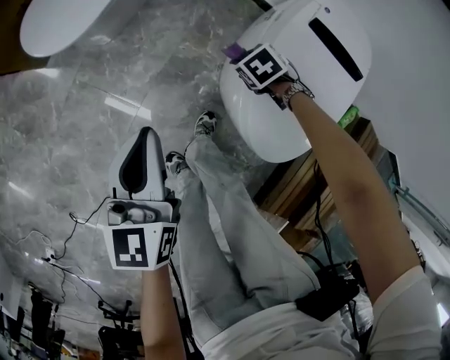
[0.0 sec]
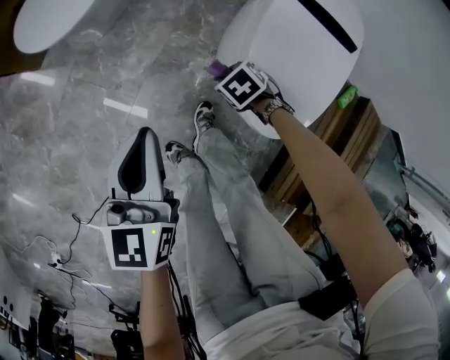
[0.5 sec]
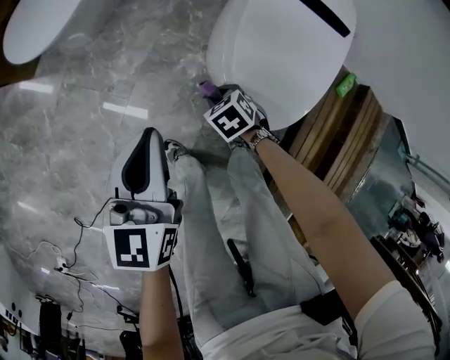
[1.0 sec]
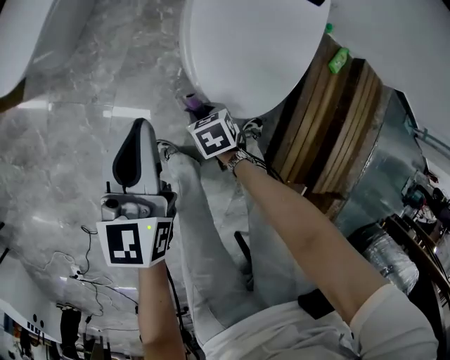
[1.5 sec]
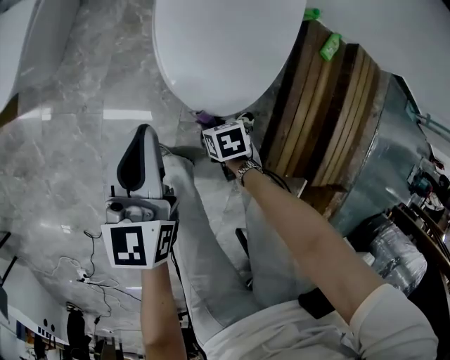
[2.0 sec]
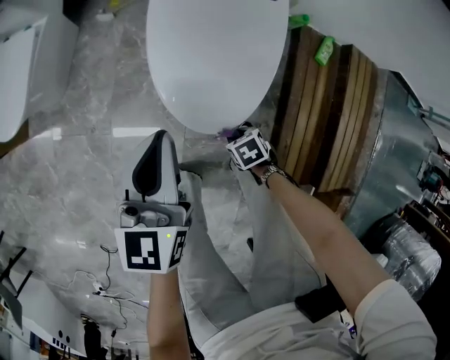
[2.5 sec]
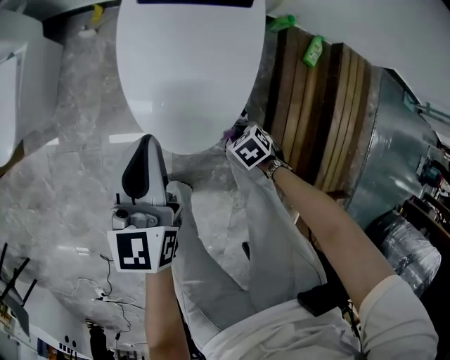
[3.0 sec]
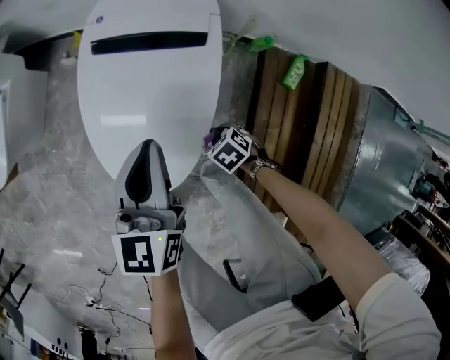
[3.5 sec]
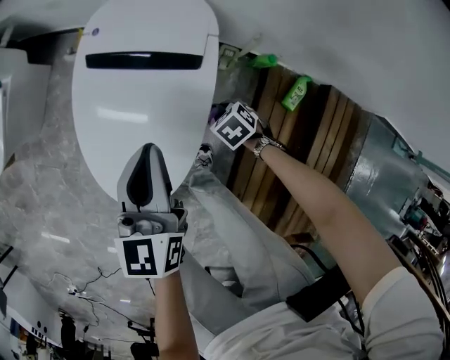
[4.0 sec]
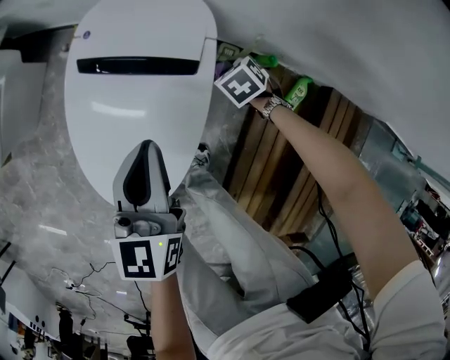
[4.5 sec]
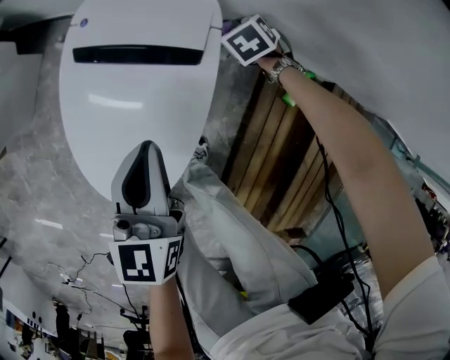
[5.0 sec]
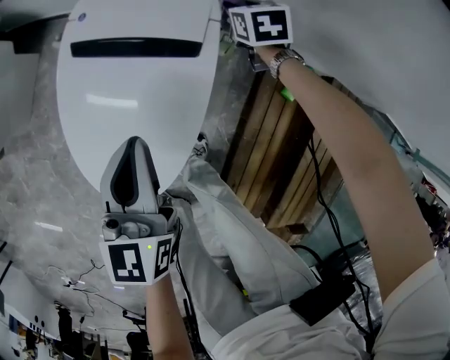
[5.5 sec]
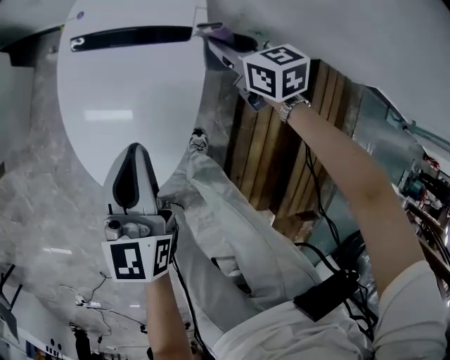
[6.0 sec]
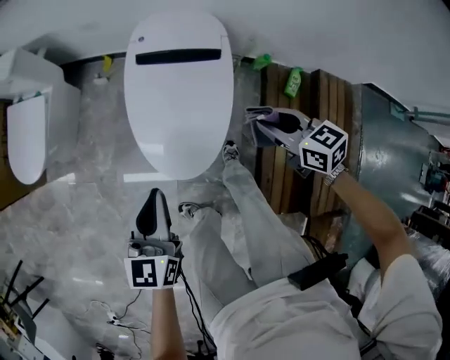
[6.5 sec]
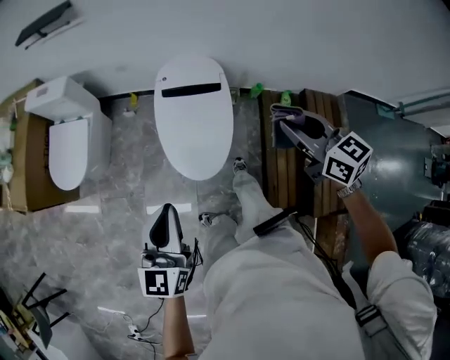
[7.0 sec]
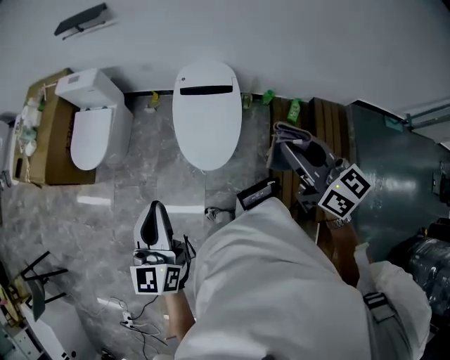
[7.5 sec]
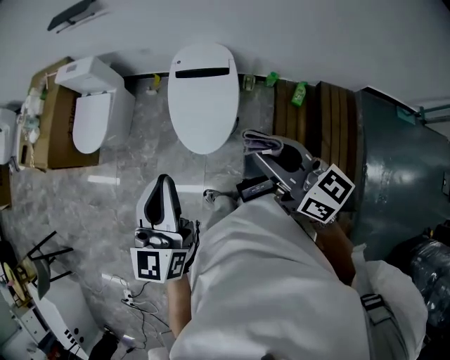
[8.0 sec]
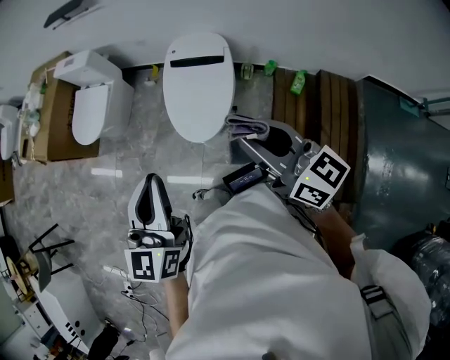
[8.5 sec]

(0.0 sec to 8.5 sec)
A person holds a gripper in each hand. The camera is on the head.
0.0 sec - 2.0 sec: The left gripper moves about 25 cm, while the right gripper shifts by about 35 cm, and rolls clockwise, seen from behind, by approximately 50 degrees.
2.0 sec - 4.0 sec: The right gripper moves approximately 40 cm, and changes its angle by some 40 degrees; the left gripper ends up some 35 cm from where it was.
4.0 sec - 6.5 sec: The left gripper ends up approximately 30 cm from where it was, while the right gripper goes some 30 cm upward, and angles its fingers upward, by approximately 40 degrees.
6.5 sec - 8.5 sec: The two grippers go roughly 40 cm upward and backward. The right gripper tips its fingers upward by roughly 40 degrees.

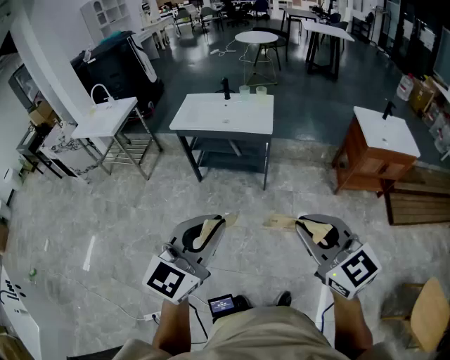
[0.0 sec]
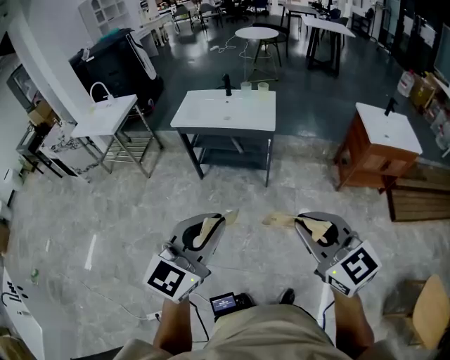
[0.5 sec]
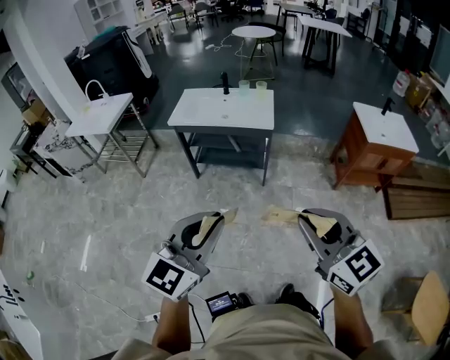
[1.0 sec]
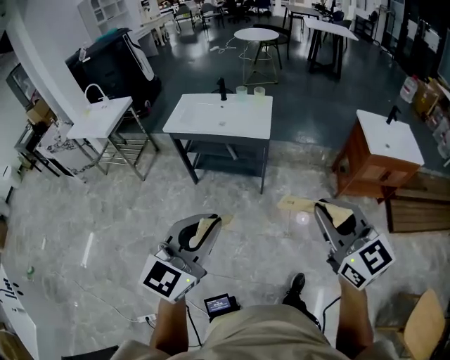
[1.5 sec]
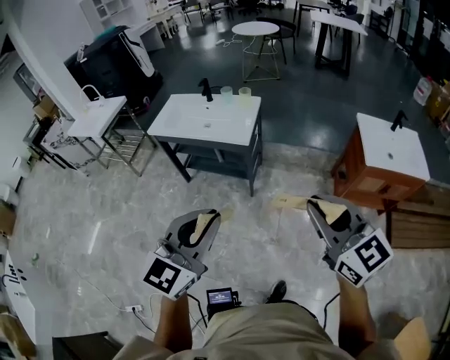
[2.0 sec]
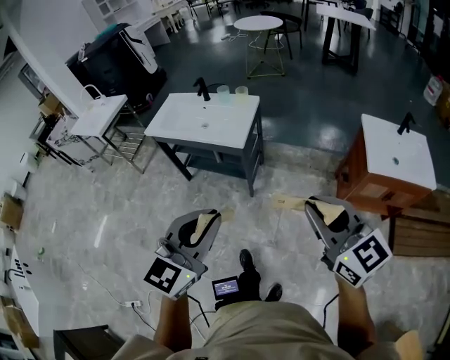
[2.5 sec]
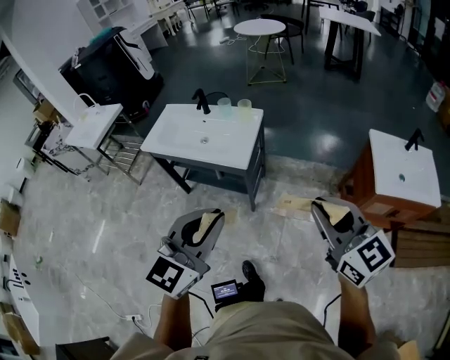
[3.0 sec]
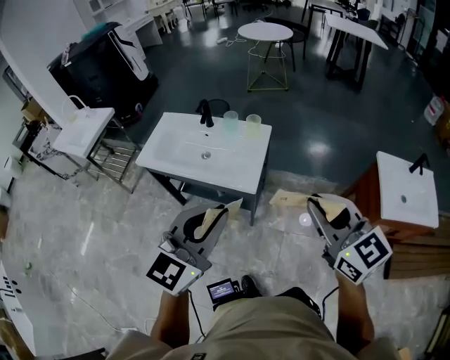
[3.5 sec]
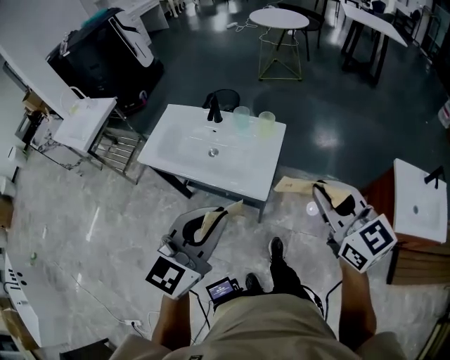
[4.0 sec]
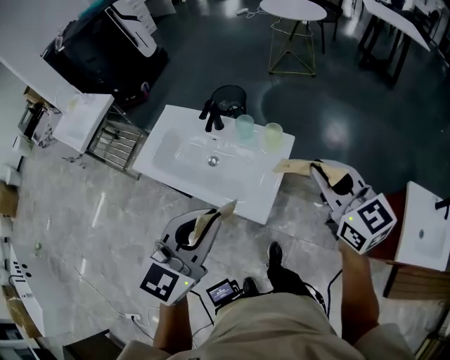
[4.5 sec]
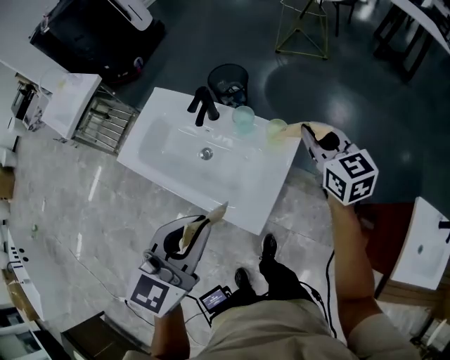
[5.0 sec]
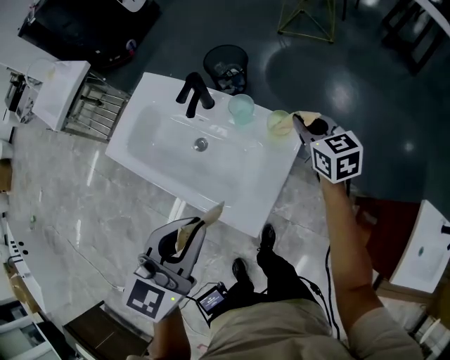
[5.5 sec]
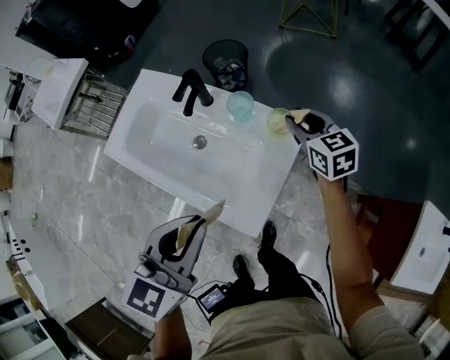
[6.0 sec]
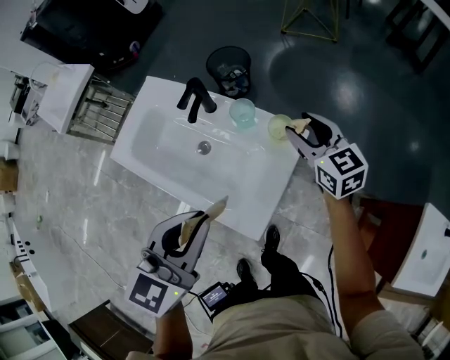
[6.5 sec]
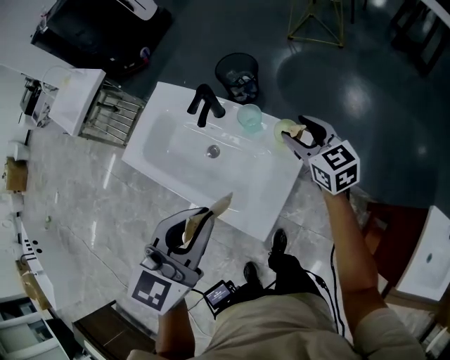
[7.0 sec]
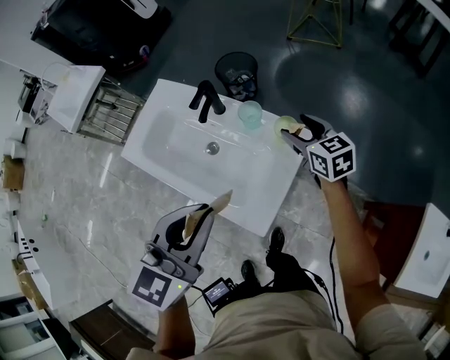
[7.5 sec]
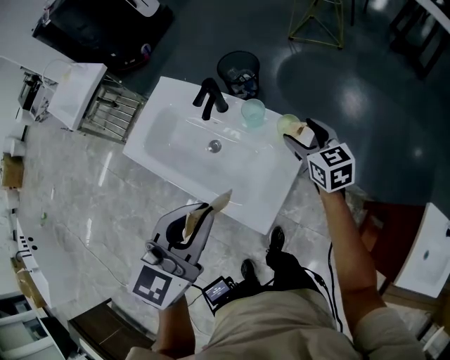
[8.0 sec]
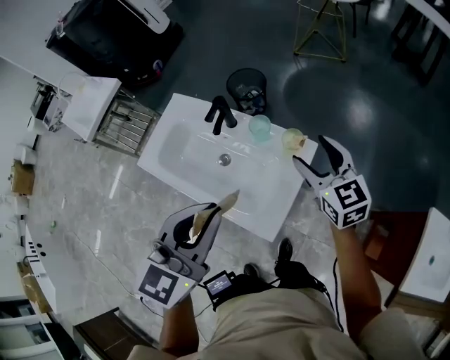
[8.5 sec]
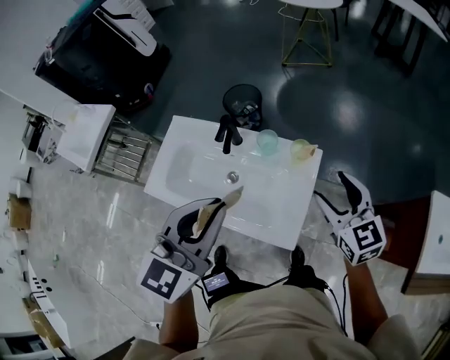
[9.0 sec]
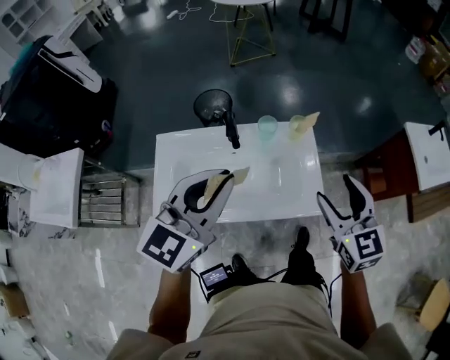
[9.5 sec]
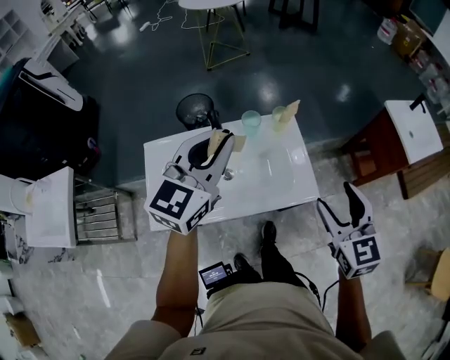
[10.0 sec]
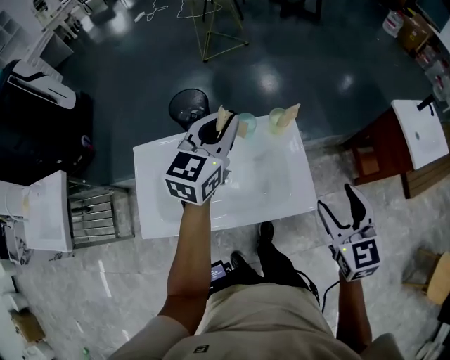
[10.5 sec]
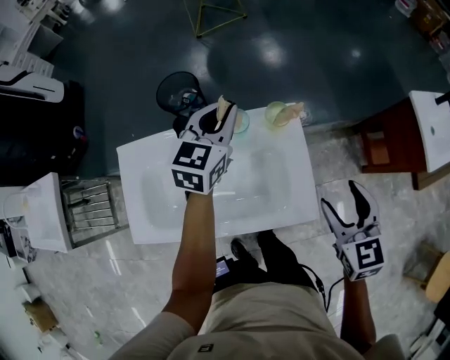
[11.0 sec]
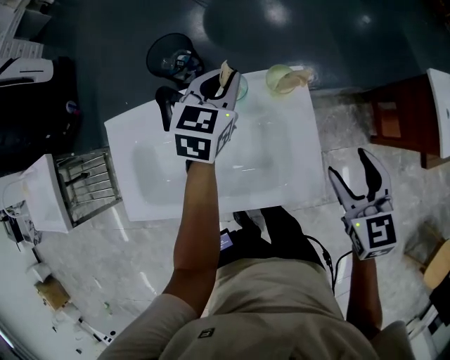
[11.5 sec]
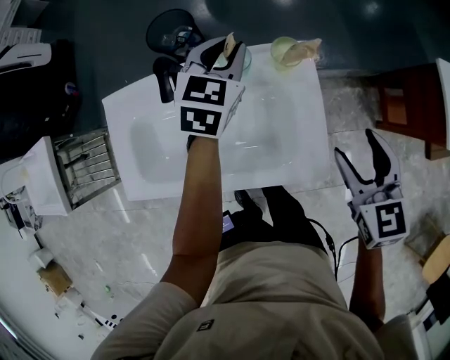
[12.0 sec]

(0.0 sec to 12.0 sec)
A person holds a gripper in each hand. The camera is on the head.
0.0 sec - 2.0 sec: The two grippers go about 35 cm to the right and forward.
2.0 sec - 4.0 sec: Both grippers are carried forward, approximately 40 cm.
4.0 sec - 6.0 sec: The left gripper shifts about 30 cm forward and downward, and swivels approximately 20 degrees. The right gripper heads forward and downward, covering some 60 cm, and turns by approximately 20 degrees.
6.0 sec - 8.0 sec: The right gripper opens its fingers.
8.0 sec - 10.0 sec: The right gripper shifts by some 40 cm, and swivels some 50 degrees. The left gripper moves some 20 cm, and swivels roughly 40 degrees.
10.0 sec - 12.0 sec: The left gripper moves downward and forward, about 35 cm, and turns by approximately 30 degrees. The right gripper travels forward and downward by roughly 25 cm.

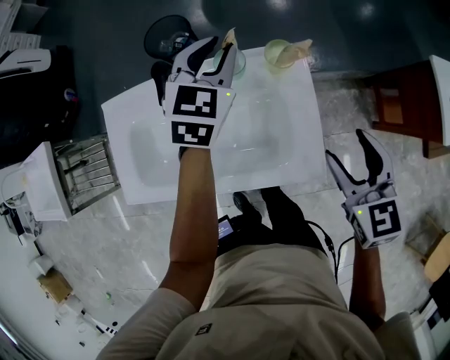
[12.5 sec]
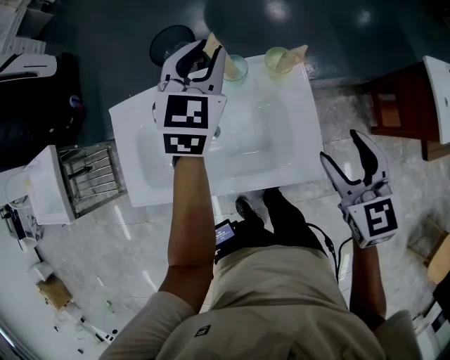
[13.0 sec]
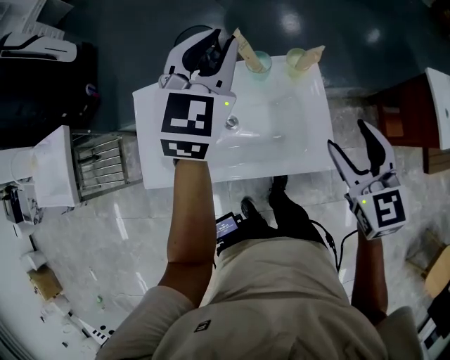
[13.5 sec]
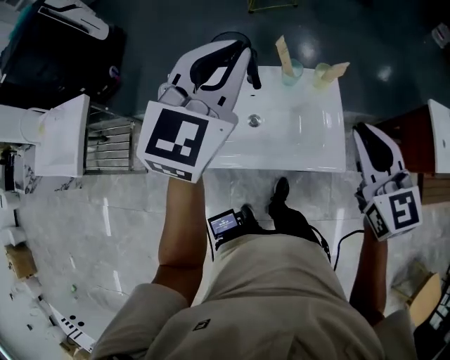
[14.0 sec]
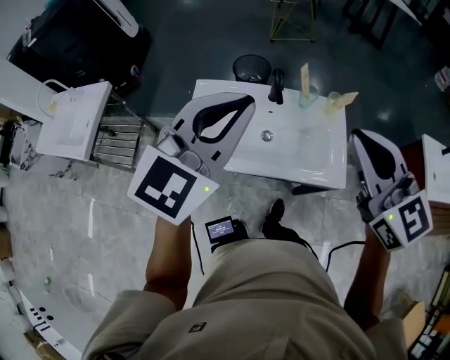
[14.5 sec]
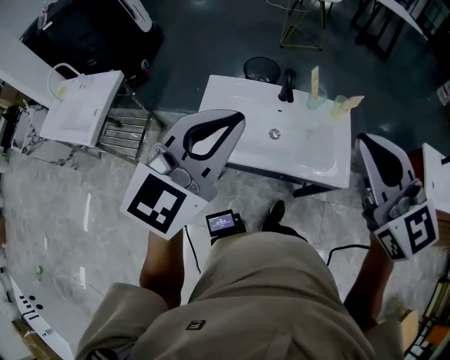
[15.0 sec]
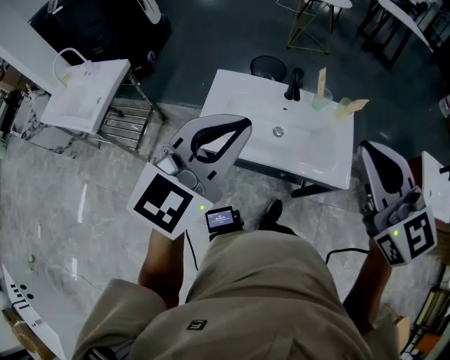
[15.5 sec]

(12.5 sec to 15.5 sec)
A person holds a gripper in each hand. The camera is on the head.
12.5 sec - 14.0 sec: The left gripper is displaced upward, backward and to the left by roughly 35 cm, and swivels roughly 20 degrees, while the right gripper goes roughly 25 cm upward, to the left and backward, changes its angle by some 20 degrees, and closes.
14.0 sec - 15.5 sec: The right gripper heads to the left, upward and backward, covering approximately 25 cm, and swivels some 20 degrees. Meanwhile the left gripper shifts approximately 30 cm backward and to the left.

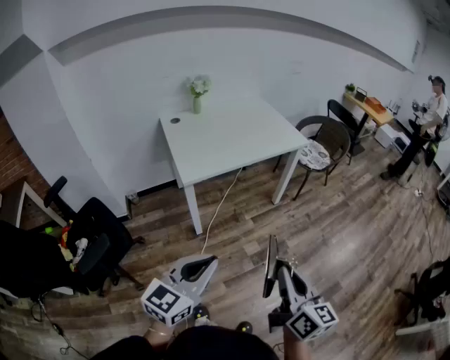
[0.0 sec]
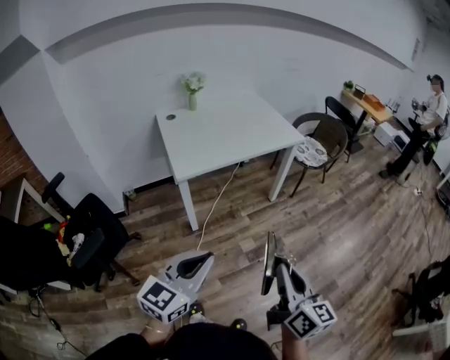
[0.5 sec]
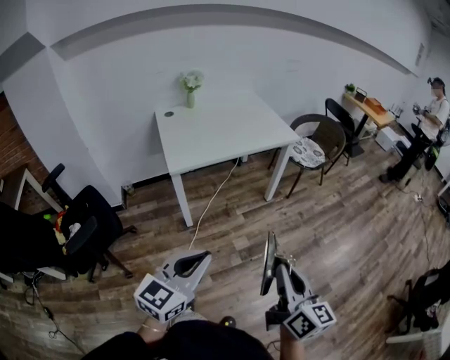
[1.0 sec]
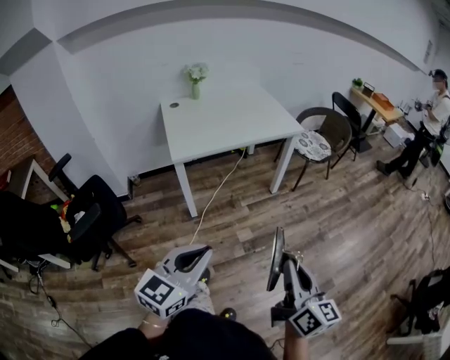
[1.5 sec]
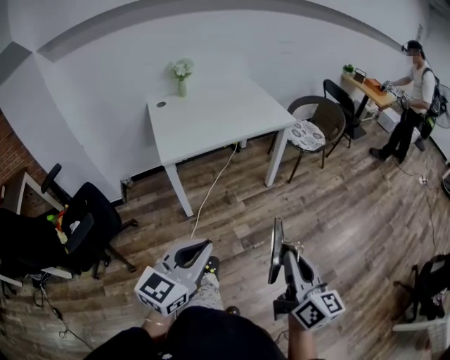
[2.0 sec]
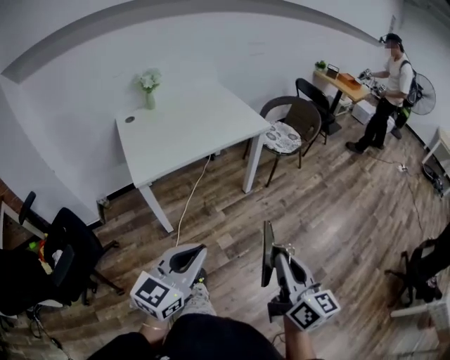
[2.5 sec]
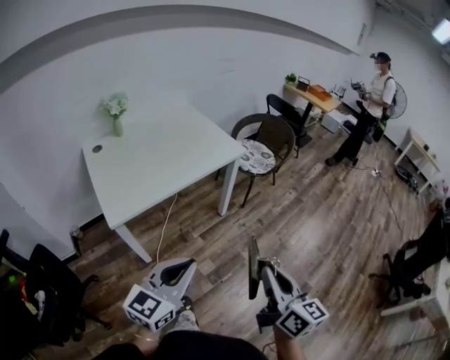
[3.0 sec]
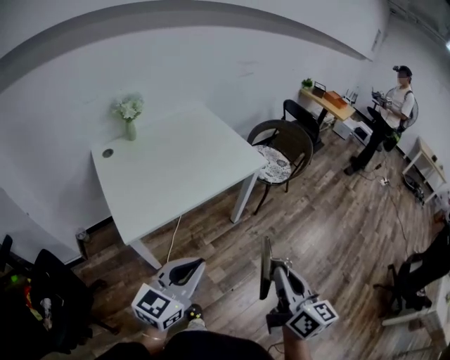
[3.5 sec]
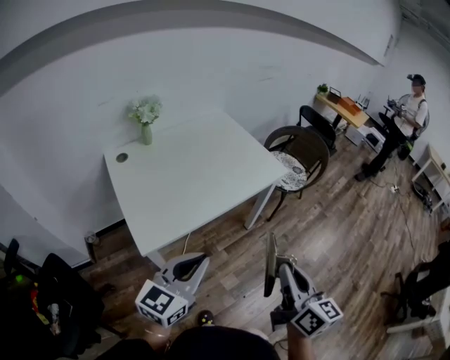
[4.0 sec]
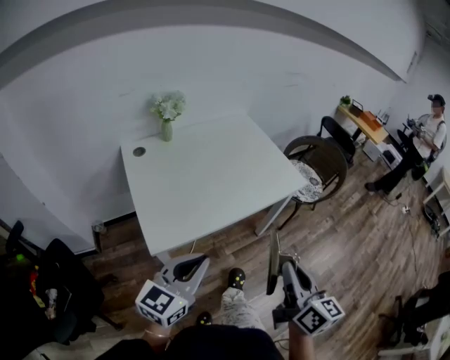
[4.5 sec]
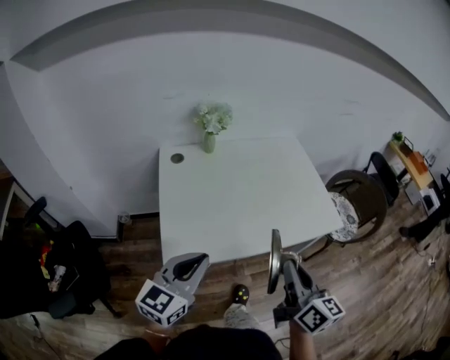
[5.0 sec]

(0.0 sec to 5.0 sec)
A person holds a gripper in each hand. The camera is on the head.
0.0 sec - 2.5 sec: The grippers both shift to the right and forward by roughly 15 cm.
2.5 sec - 5.0 sec: The pair of grippers is taken about 50 cm. The left gripper changes its angle by roughly 20 degrees.
